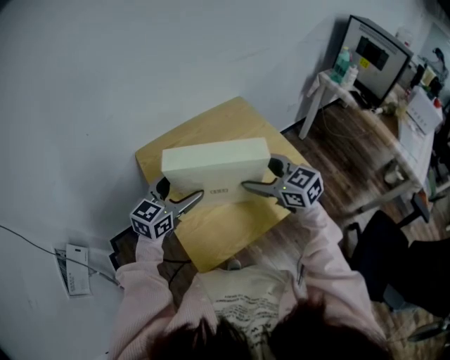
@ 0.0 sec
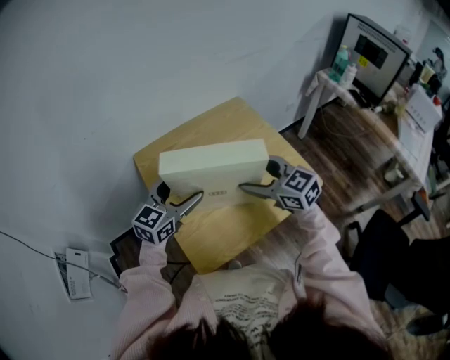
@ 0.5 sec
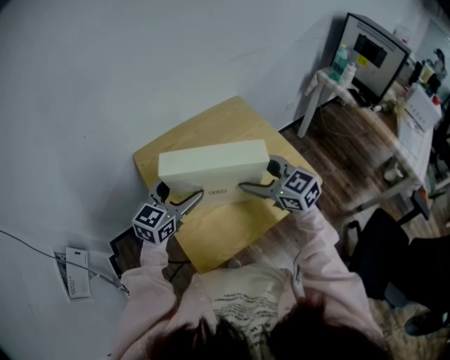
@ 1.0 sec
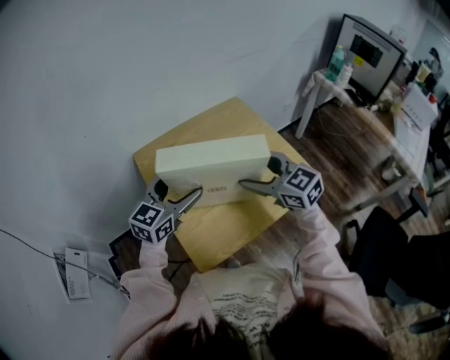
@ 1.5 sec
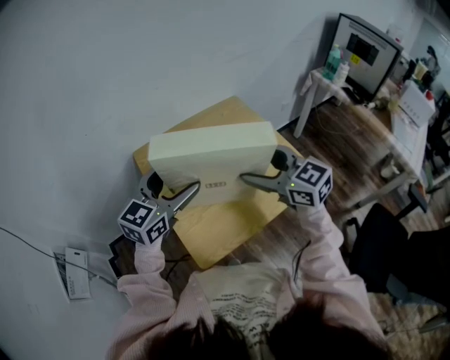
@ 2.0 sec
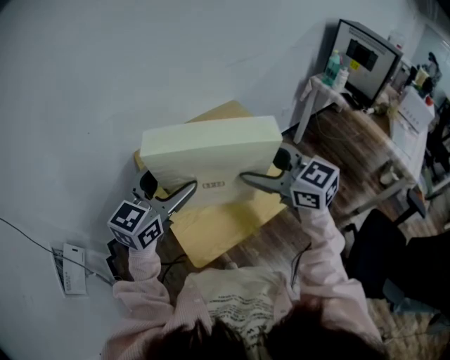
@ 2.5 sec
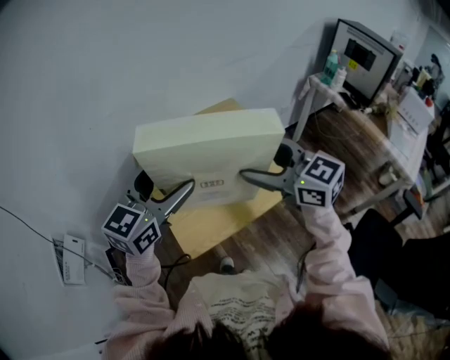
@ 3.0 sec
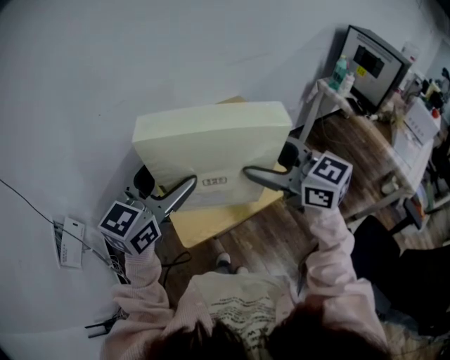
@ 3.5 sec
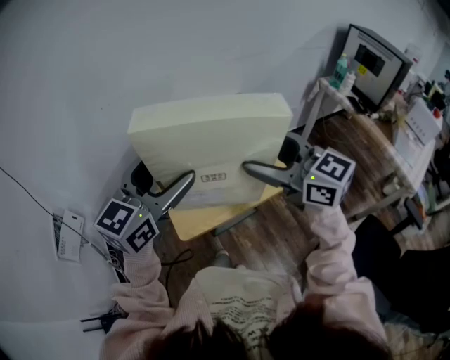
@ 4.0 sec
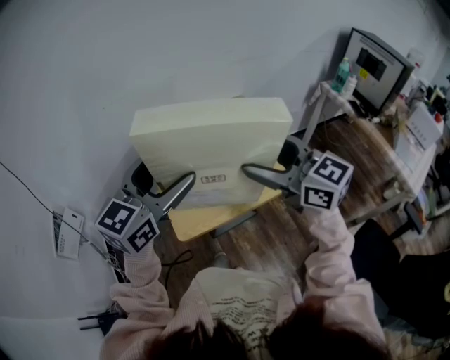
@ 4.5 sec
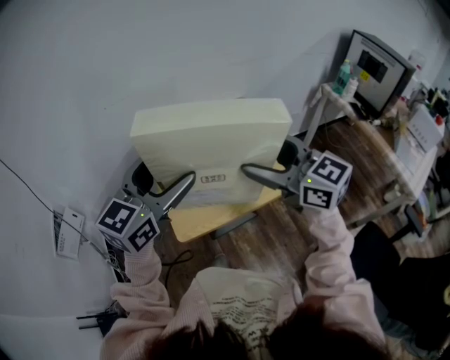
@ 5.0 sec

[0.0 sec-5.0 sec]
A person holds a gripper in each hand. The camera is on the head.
0.0 sec to 2.5 sec: The grippers both shift upward and backward by about 15 cm.
2.5 sec to 5.0 sec: The grippers both shift backward and upward by roughly 10 cm.

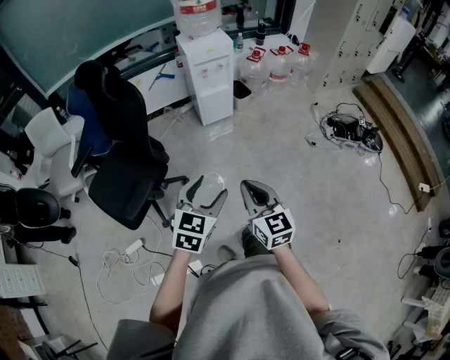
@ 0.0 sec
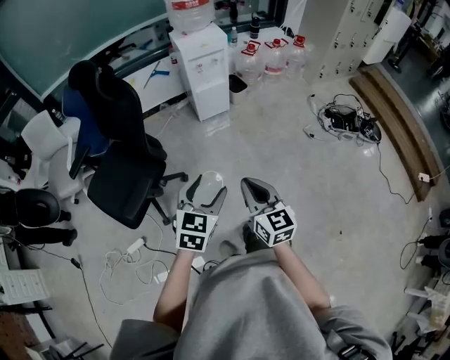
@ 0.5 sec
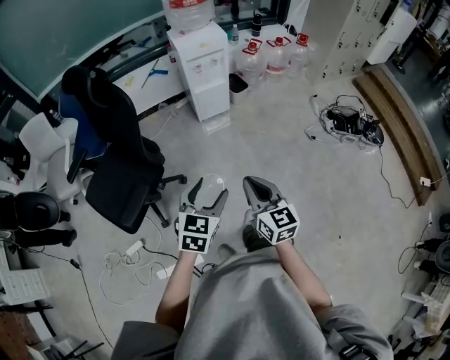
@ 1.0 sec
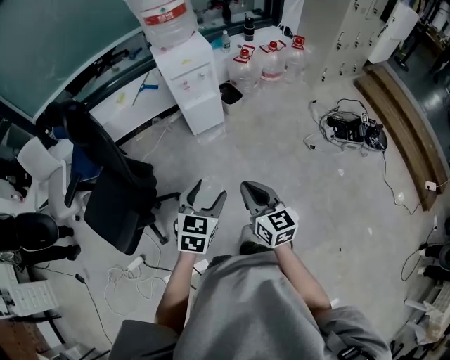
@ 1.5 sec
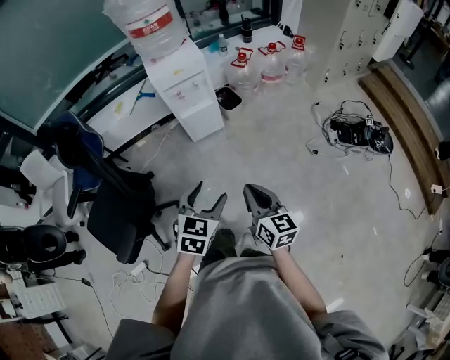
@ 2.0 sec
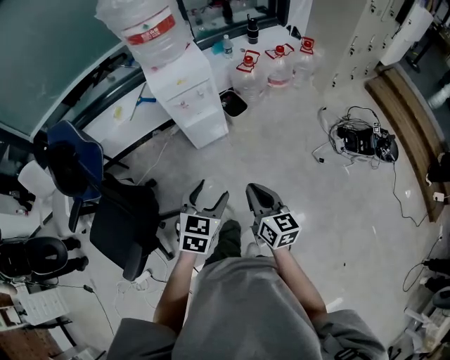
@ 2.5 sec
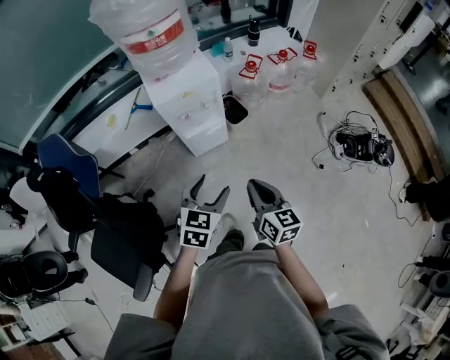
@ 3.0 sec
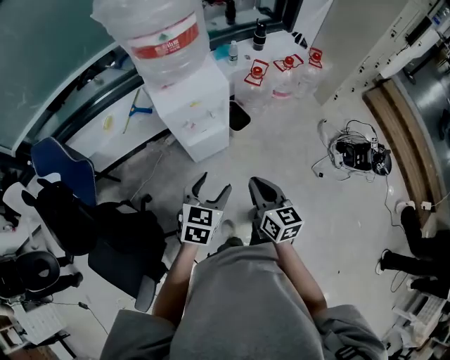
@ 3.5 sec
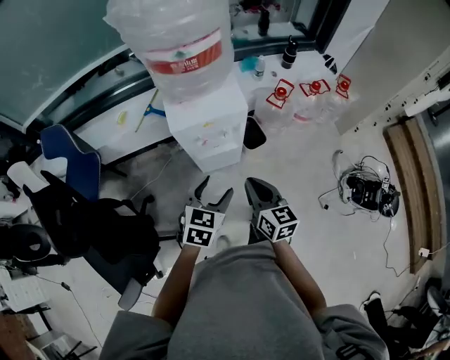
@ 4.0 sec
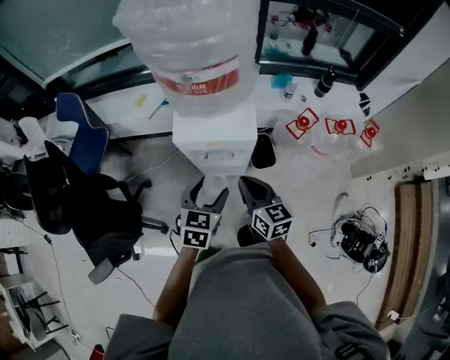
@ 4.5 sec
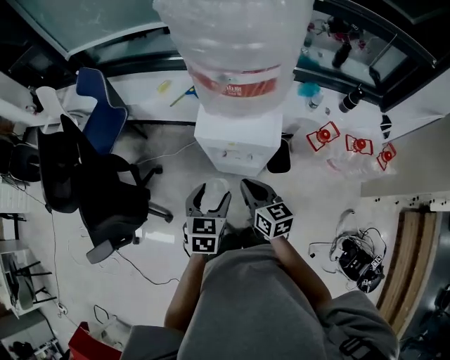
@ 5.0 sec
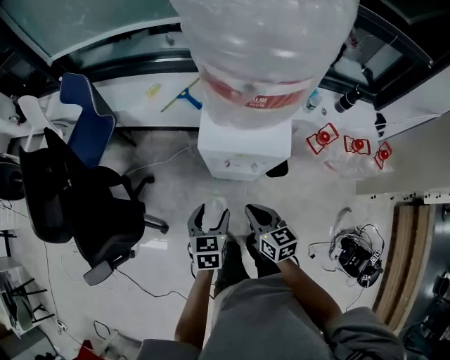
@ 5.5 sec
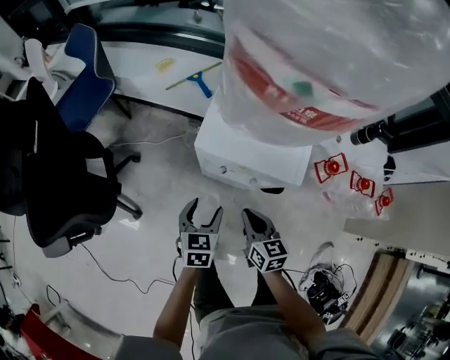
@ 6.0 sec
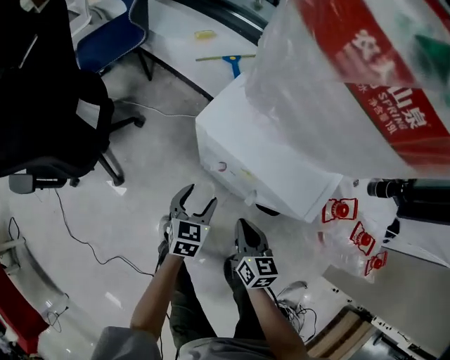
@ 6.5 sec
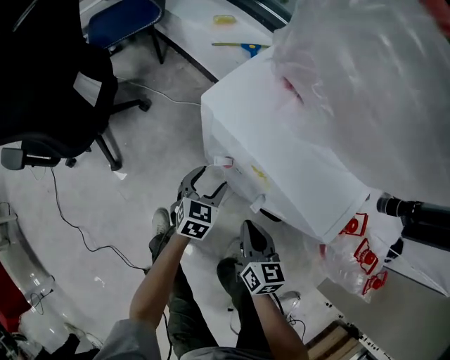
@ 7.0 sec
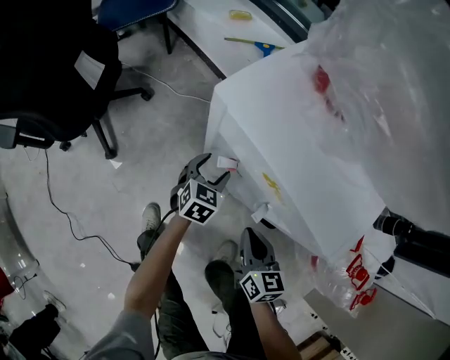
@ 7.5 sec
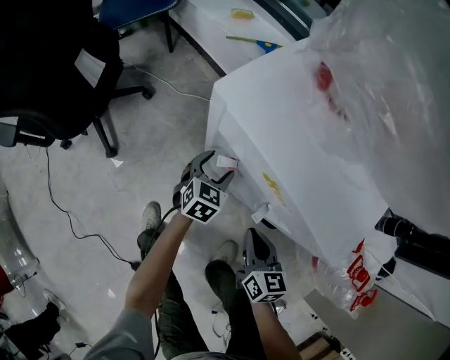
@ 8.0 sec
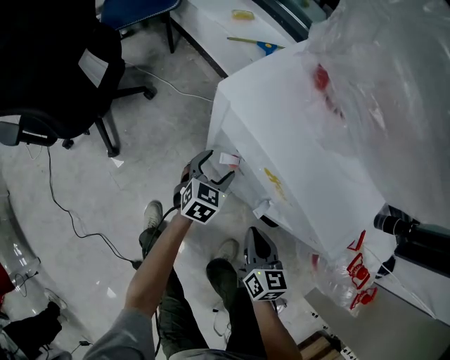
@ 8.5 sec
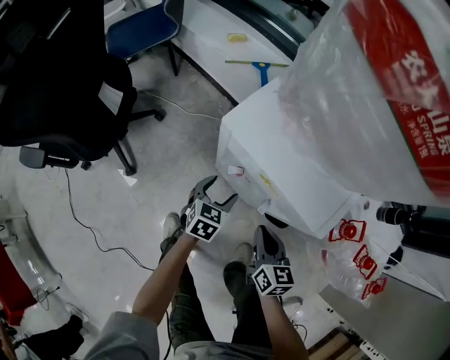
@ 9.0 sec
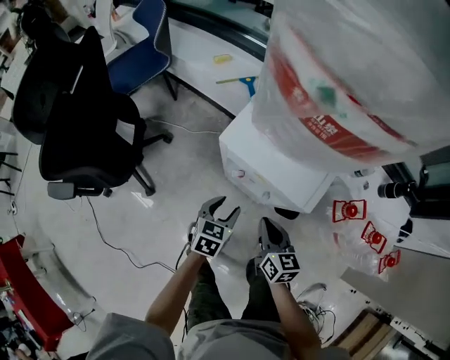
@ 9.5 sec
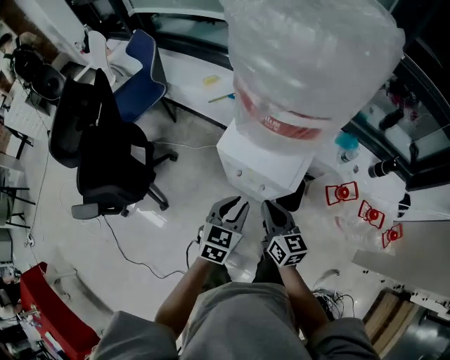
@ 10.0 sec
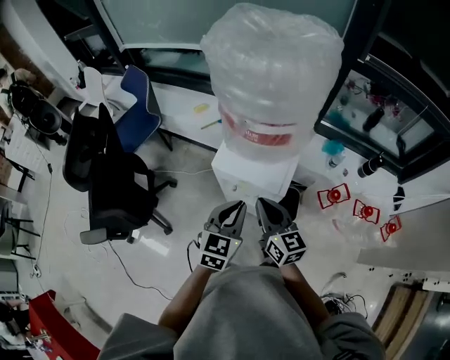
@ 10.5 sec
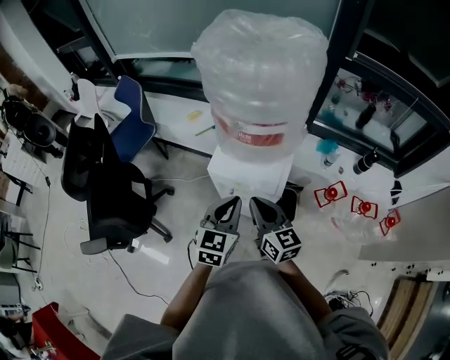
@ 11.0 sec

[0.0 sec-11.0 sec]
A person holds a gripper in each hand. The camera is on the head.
0.0 sec to 2.0 sec: Both grippers travel together forward and to the right, some 30 cm.
2.0 sec to 3.5 sec: Both grippers travel together forward, some 30 cm.
3.5 sec to 5.5 sec: The left gripper ends up about 20 cm from where it was, and turns by roughly 50 degrees. The right gripper ends up some 25 cm from where it was, and turns by approximately 40 degrees.
5.5 sec to 7.5 sec: The left gripper is displaced downward and forward by approximately 35 cm, while the right gripper moves downward and to the right, approximately 30 cm, and rotates some 20 degrees.
7.5 sec to 9.0 sec: The right gripper moves upward, some 5 cm; the left gripper heads upward and backward, covering roughly 10 cm.
9.0 sec to 11.0 sec: The two grippers go approximately 40 cm upward. The left gripper rotates approximately 30 degrees, and closes, while the right gripper rotates approximately 20 degrees.

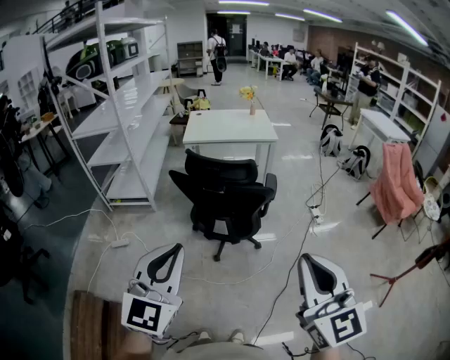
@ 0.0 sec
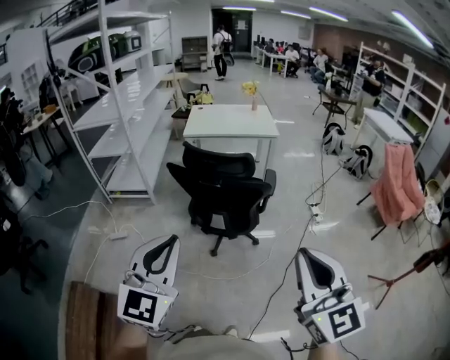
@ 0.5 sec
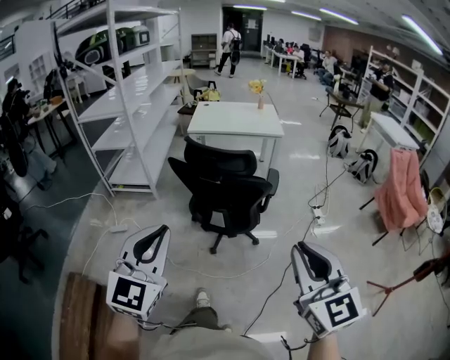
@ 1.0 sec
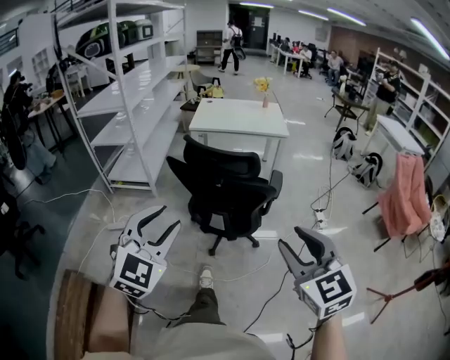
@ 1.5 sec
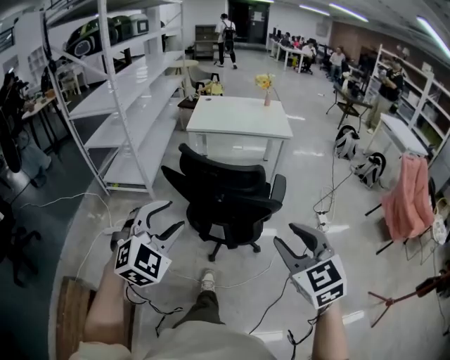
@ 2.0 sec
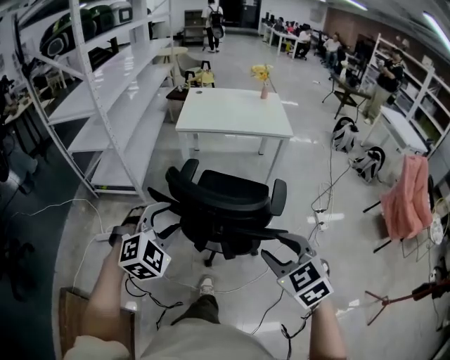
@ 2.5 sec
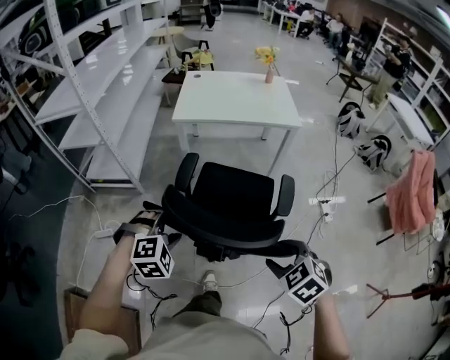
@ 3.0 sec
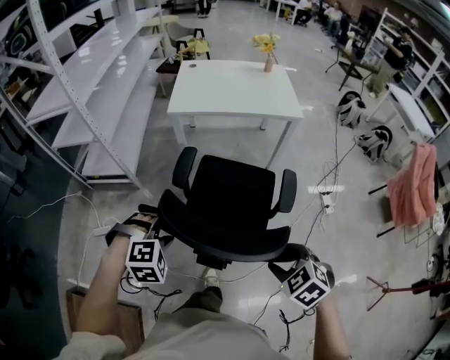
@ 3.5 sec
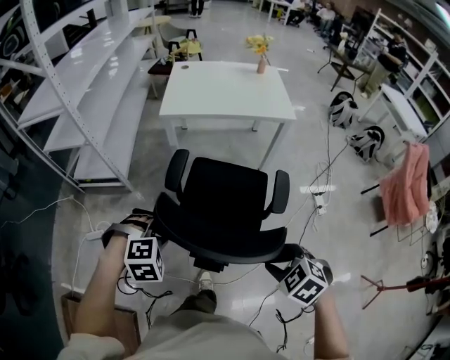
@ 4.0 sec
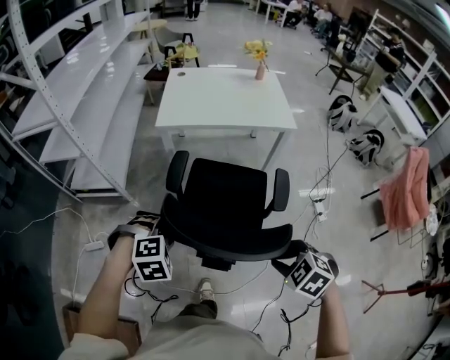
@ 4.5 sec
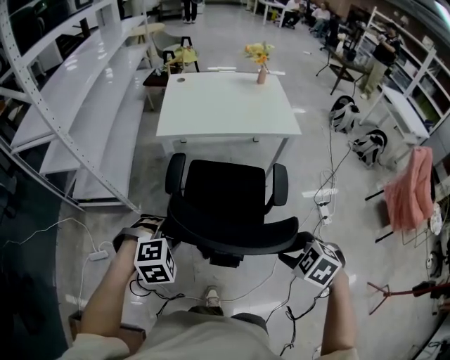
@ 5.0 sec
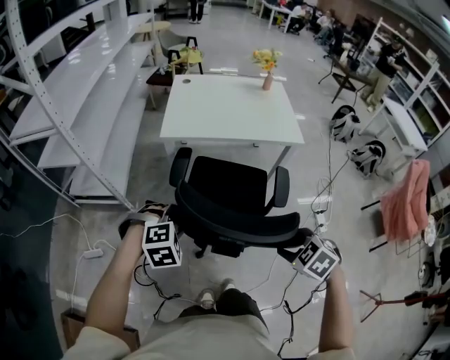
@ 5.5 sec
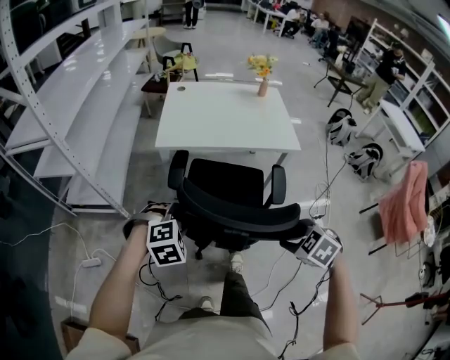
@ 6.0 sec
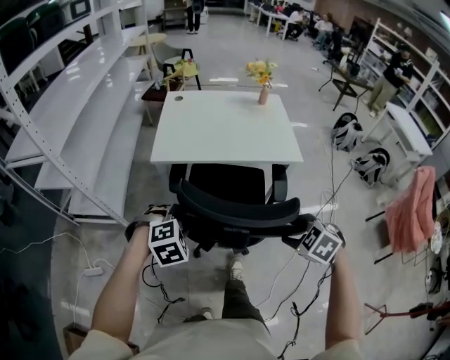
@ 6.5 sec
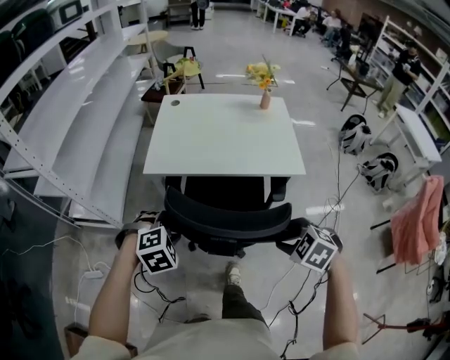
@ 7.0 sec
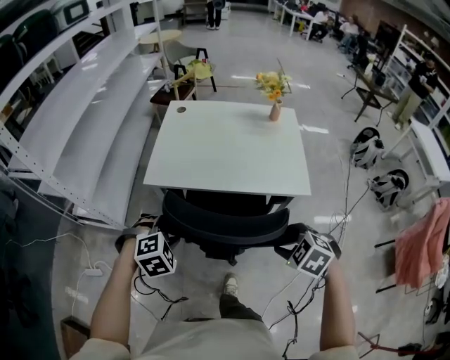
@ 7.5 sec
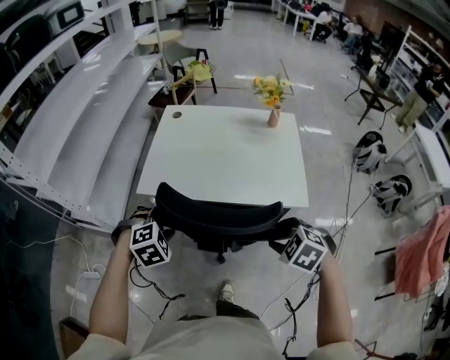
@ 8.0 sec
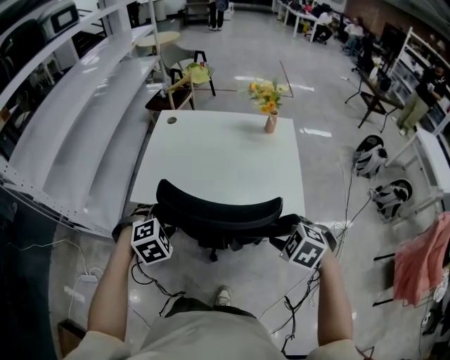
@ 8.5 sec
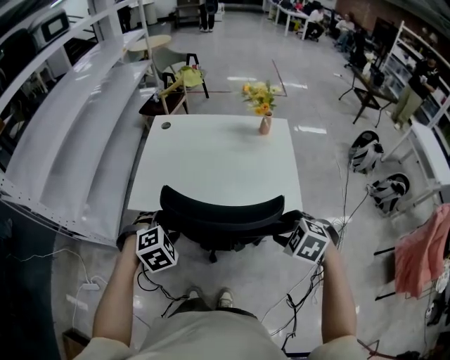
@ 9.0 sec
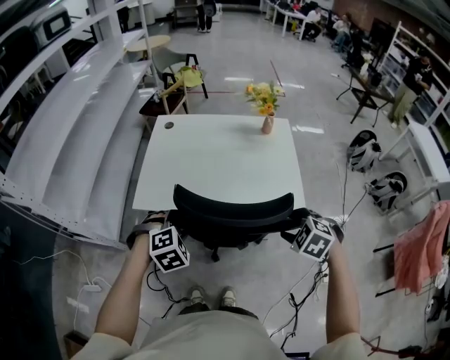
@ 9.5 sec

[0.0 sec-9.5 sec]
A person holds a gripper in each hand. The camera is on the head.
0.0 sec to 2.0 sec: Both grippers travel together forward and downward, some 25 cm. The left gripper rotates approximately 40 degrees, and opens its fingers. The right gripper swivels approximately 30 degrees, and opens up.
2.0 sec to 4.0 sec: Both grippers travel together forward and downward, about 30 cm. The left gripper angles its fingers downward, by some 40 degrees. The right gripper angles its fingers downward, by some 40 degrees.
4.0 sec to 5.5 sec: Both grippers move forward, about 20 cm.
5.5 sec to 7.5 sec: The grippers both shift forward and to the right by some 30 cm.
7.5 sec to 9.5 sec: The grippers both shift forward and to the right by roughly 15 cm.

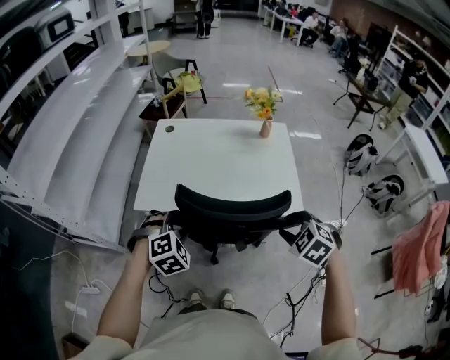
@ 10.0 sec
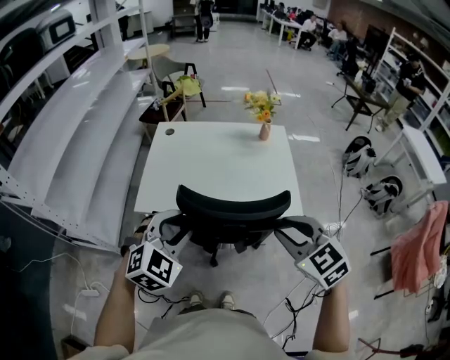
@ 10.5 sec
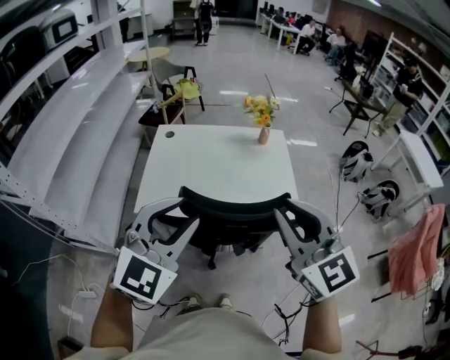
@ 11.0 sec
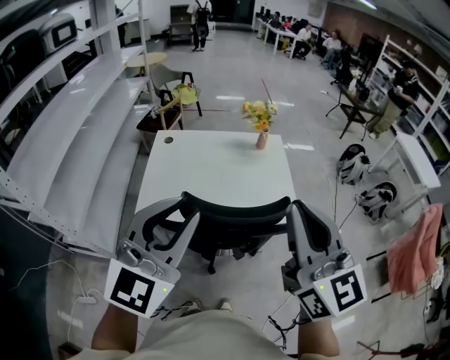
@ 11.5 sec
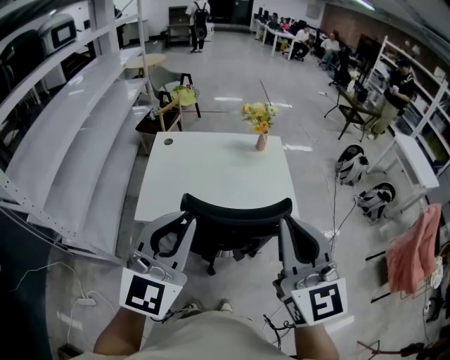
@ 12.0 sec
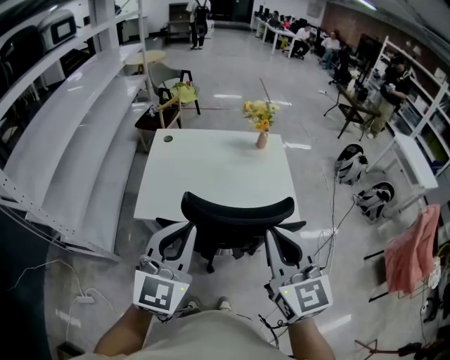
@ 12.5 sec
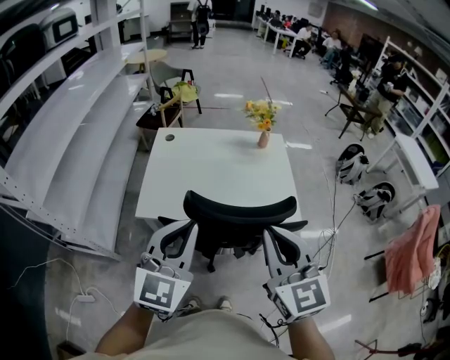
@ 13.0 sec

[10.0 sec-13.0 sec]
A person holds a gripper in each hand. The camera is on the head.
10.0 sec to 11.5 sec: Both grippers travel together upward, roughly 30 cm. The right gripper points its fingers approximately 70 degrees further upward, and closes up. The left gripper angles its fingers upward, by approximately 50 degrees, and closes.
11.5 sec to 13.0 sec: The grippers both shift downward by some 10 cm. The left gripper closes its fingers.
